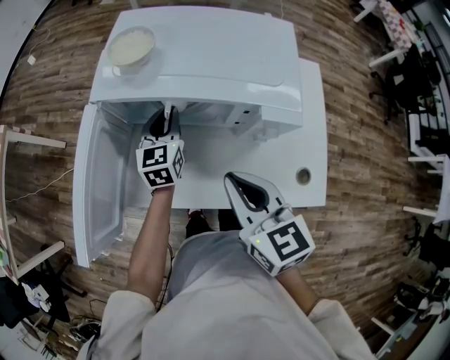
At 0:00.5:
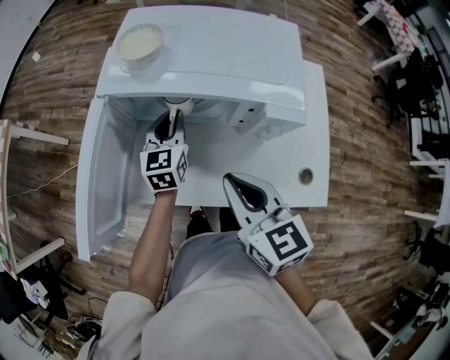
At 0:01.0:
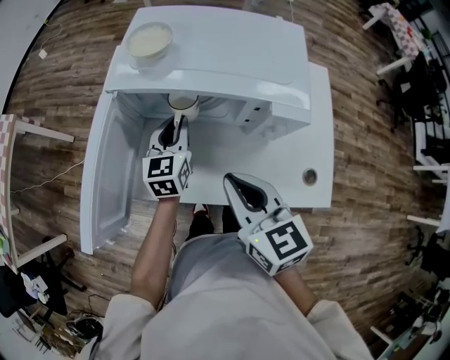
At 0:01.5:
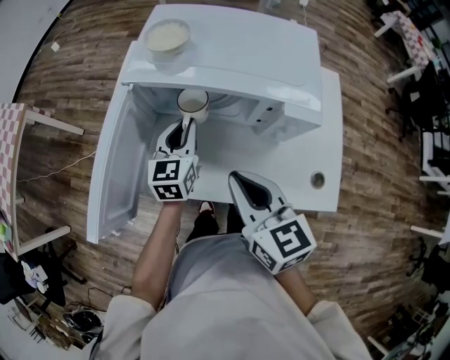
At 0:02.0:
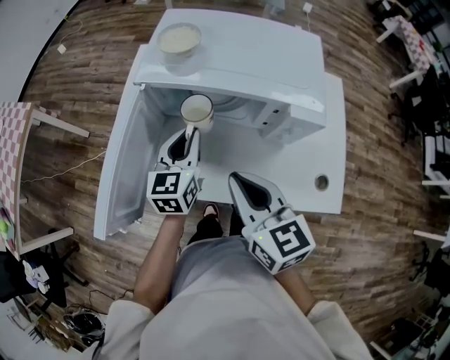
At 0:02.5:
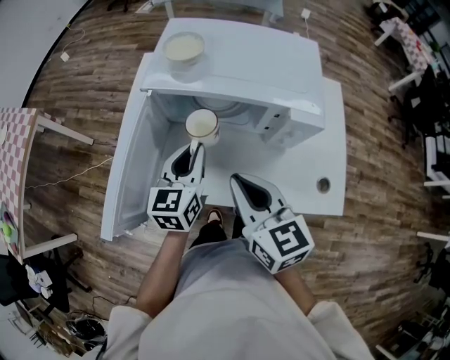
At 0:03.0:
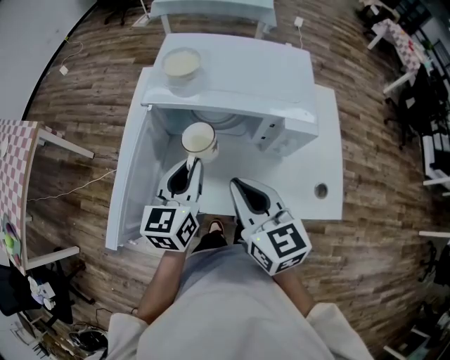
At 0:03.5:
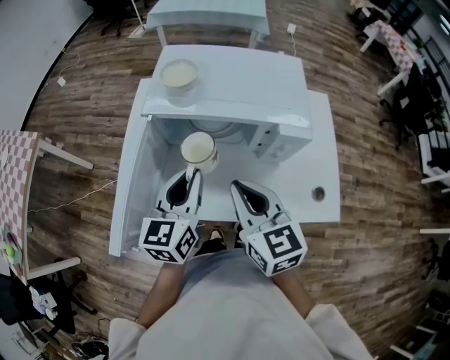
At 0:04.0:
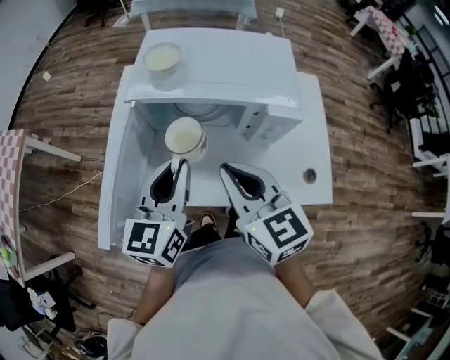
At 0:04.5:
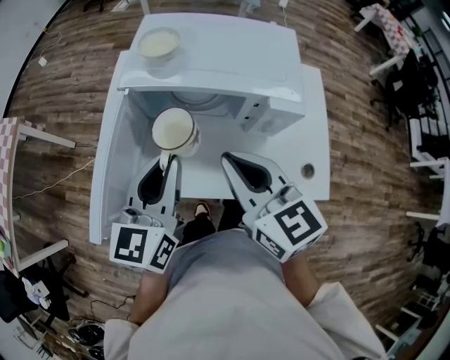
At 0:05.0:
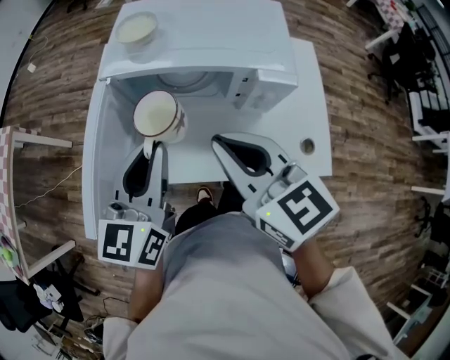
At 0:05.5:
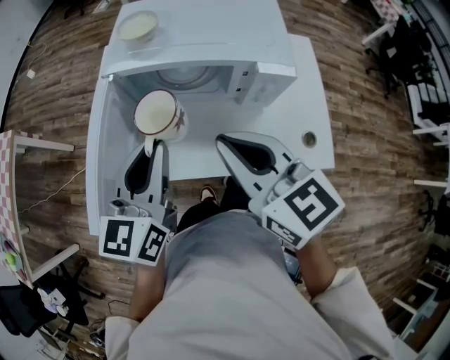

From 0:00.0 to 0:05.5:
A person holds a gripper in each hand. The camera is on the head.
From 0:00.0 to 0:02.0: The left gripper travels backward and upward by roughly 10 cm, while the right gripper is displaced to the left by approximately 5 cm.
From 0:02.0 to 0:03.5: The left gripper moves upward and backward, some 10 cm.
From 0:03.5 to 0:05.5: The left gripper moves some 5 cm, while the right gripper is displaced upward by roughly 5 cm.

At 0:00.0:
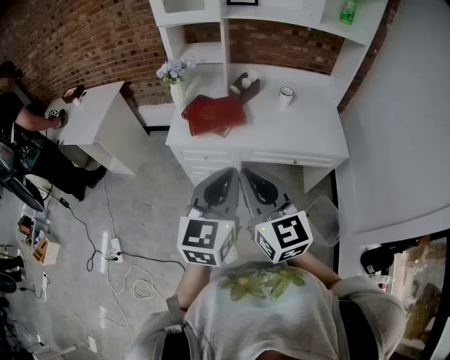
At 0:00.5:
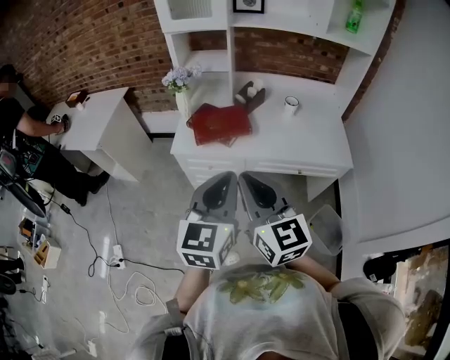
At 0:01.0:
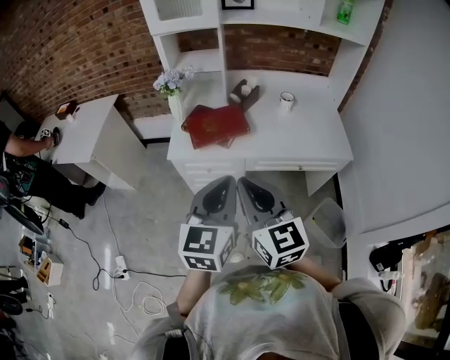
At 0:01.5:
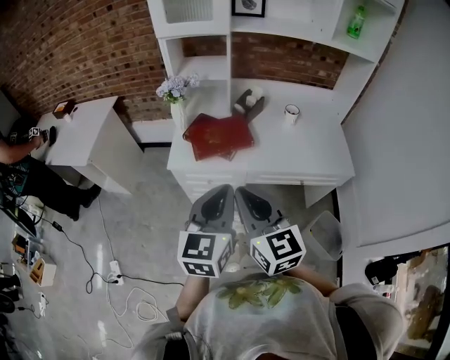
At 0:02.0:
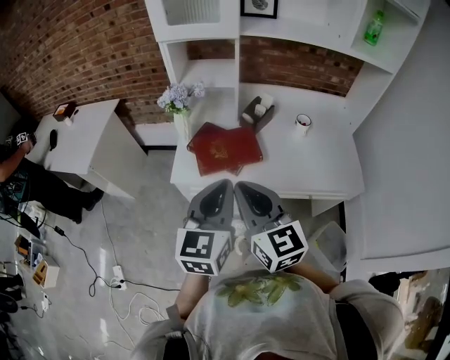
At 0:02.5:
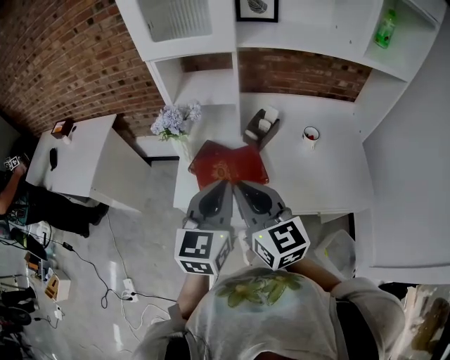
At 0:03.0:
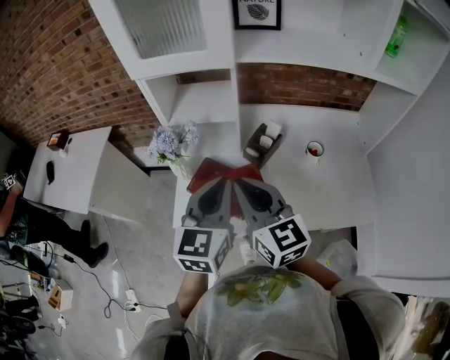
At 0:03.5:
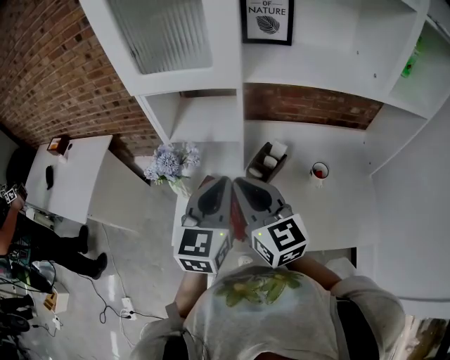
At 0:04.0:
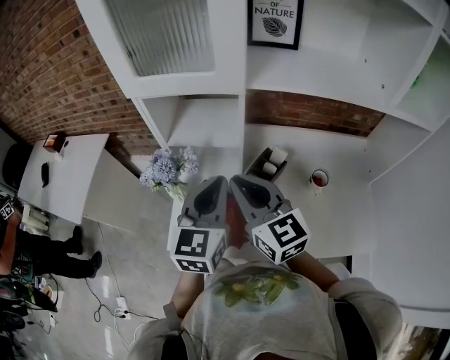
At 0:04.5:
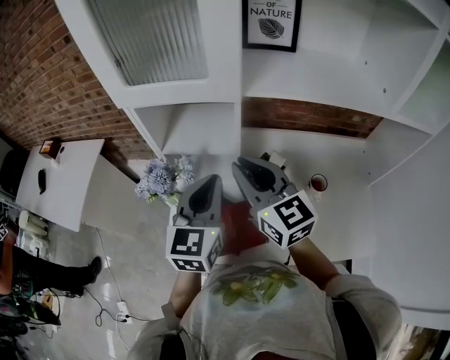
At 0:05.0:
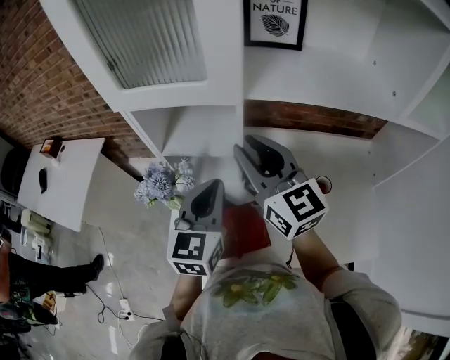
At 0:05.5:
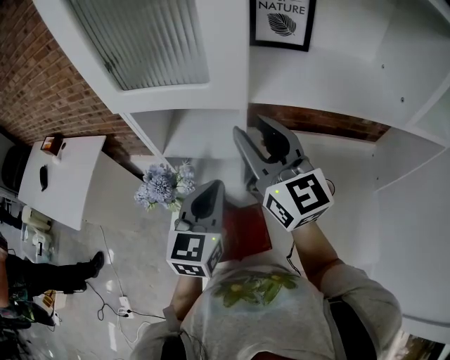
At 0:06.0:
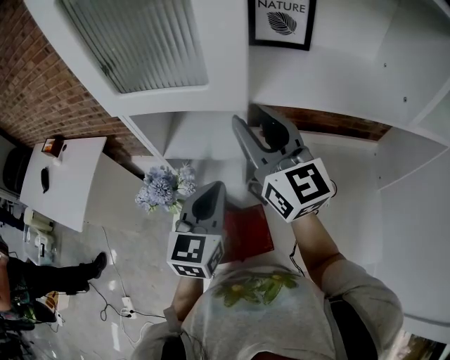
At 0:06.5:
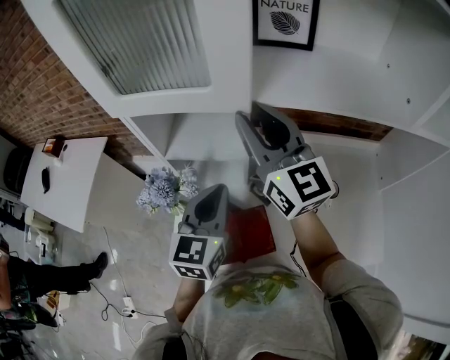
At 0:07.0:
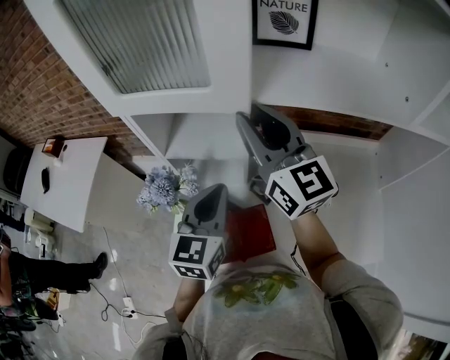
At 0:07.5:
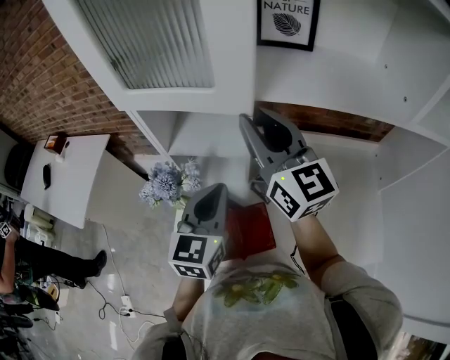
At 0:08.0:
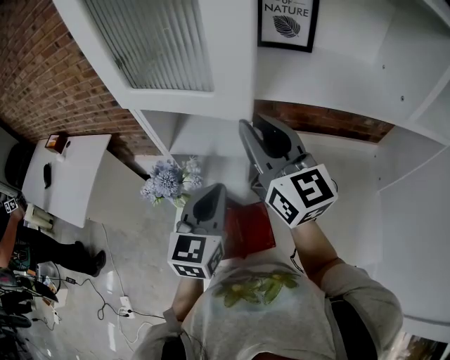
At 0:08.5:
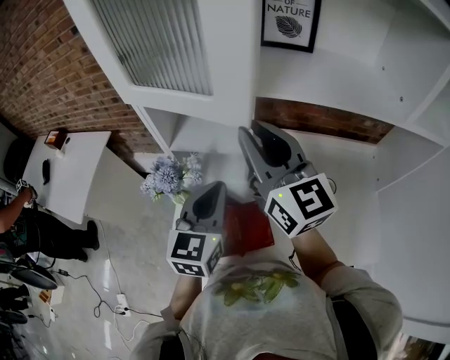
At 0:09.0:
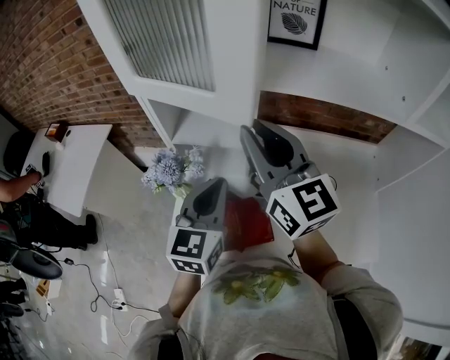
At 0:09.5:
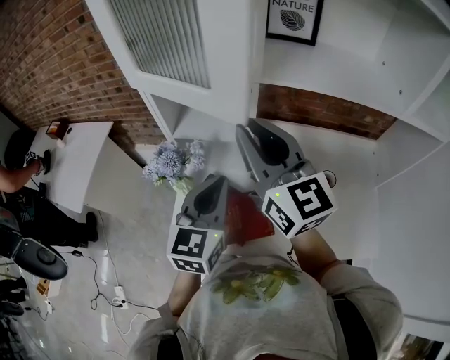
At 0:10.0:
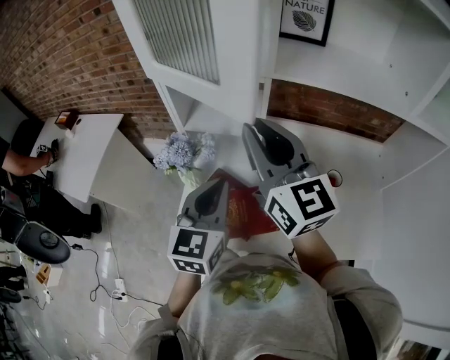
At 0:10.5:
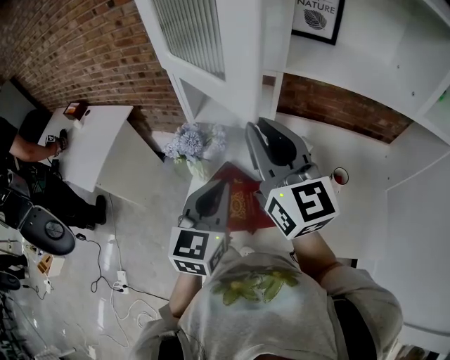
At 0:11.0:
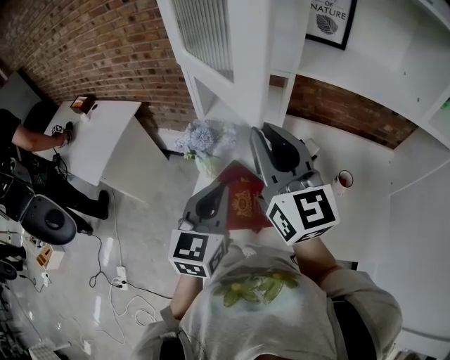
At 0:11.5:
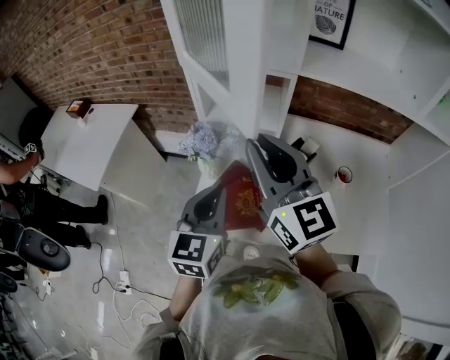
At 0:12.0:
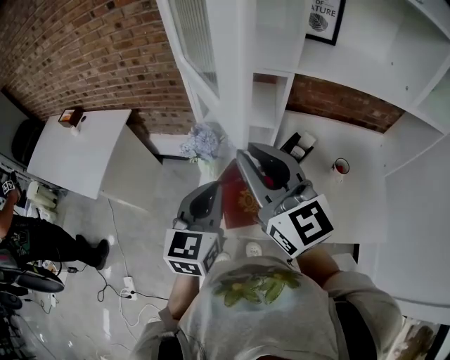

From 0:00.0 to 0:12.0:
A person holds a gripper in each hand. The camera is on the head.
From 0:00.0 to 0:02.0: Both grippers travel together forward, approximately 20 cm.
From 0:02.0 to 0:04.0: Both grippers move forward, approximately 30 cm.
From 0:04.0 to 0:06.0: The right gripper heads forward and upward, covering approximately 20 cm, and opens; the left gripper heads forward, covering about 5 cm.
From 0:06.0 to 0:08.0: The grippers move only a little.
From 0:08.0 to 0:10.0: Both grippers travel together backward, about 5 cm.
From 0:10.0 to 0:12.0: The left gripper shifts about 10 cm to the left. Meanwhile the right gripper shifts approximately 10 cm to the left and backward.

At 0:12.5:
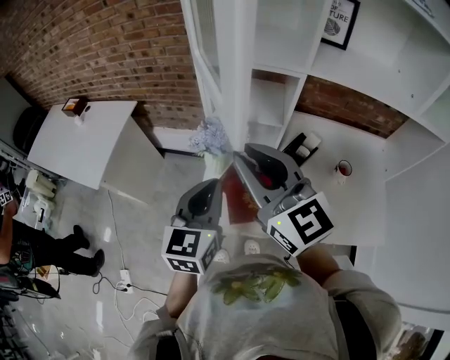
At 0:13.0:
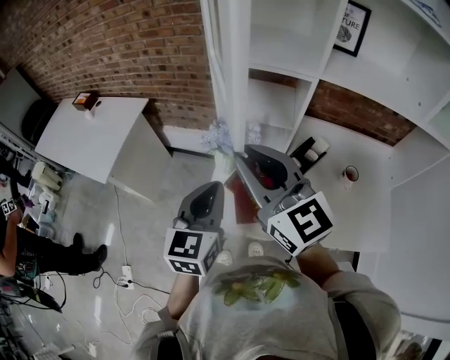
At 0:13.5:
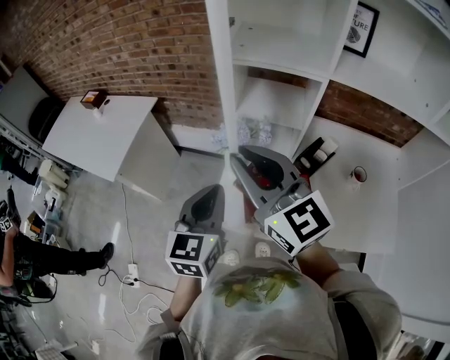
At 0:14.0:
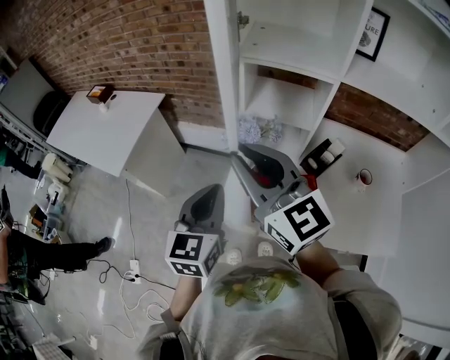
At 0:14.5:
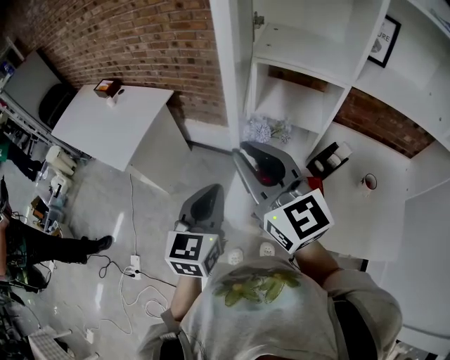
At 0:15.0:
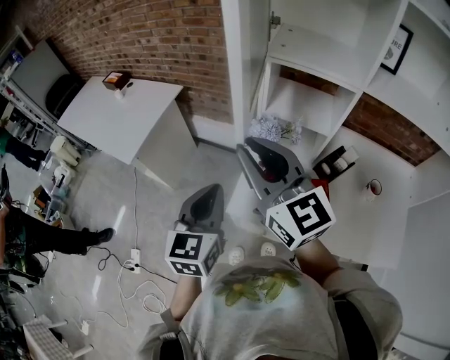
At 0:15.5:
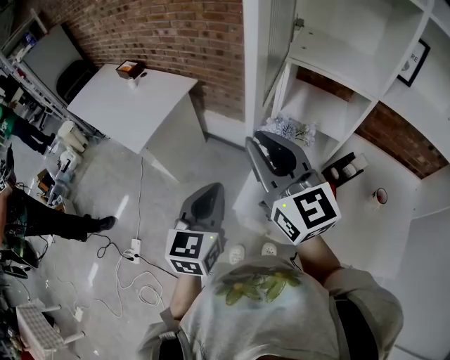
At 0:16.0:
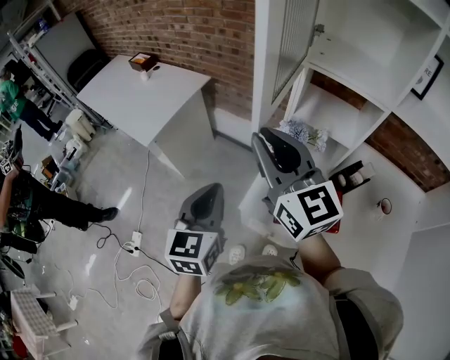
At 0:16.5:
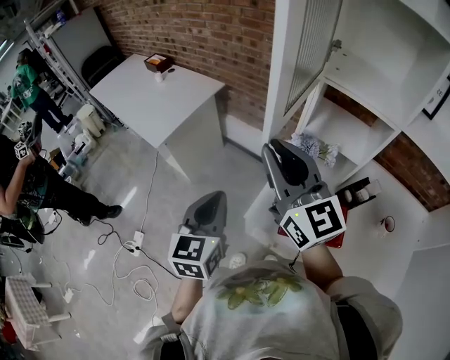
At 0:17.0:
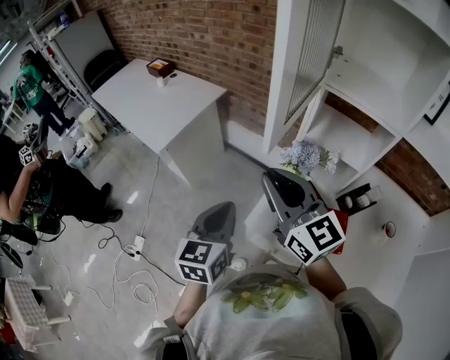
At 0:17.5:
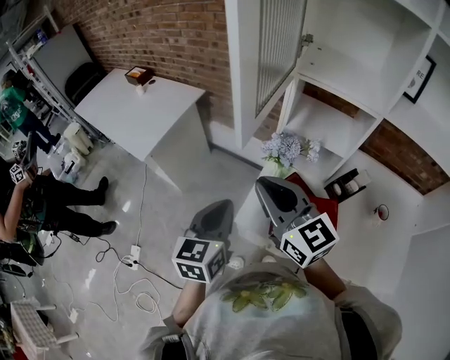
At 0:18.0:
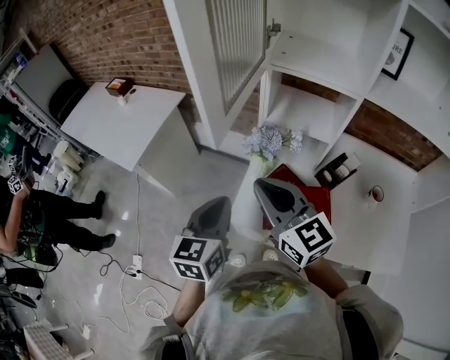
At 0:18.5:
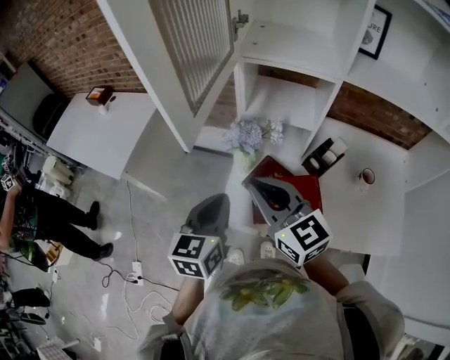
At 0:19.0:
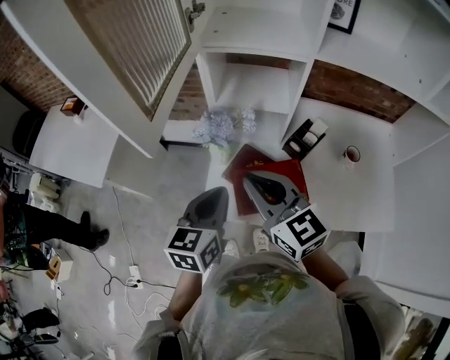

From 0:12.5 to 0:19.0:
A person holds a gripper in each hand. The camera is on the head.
From 0:12.5 to 0:14.5: Both grippers travel together to the left, about 10 cm.
From 0:14.5 to 0:17.0: The left gripper goes about 10 cm to the left; the right gripper moves to the left and downward, about 10 cm.
From 0:17.0 to 0:19.0: Both grippers travel together to the right, some 15 cm. The right gripper turns by approximately 20 degrees, while the left gripper changes its angle by some 20 degrees.

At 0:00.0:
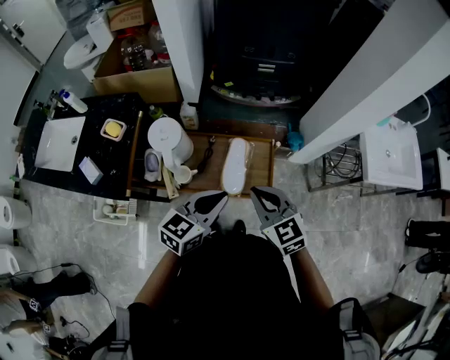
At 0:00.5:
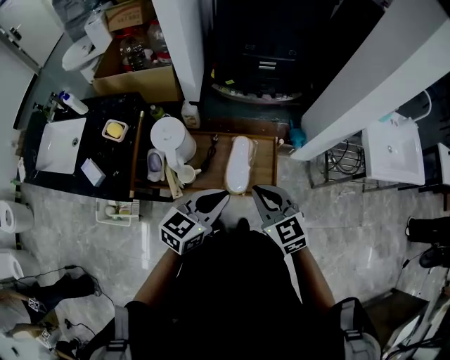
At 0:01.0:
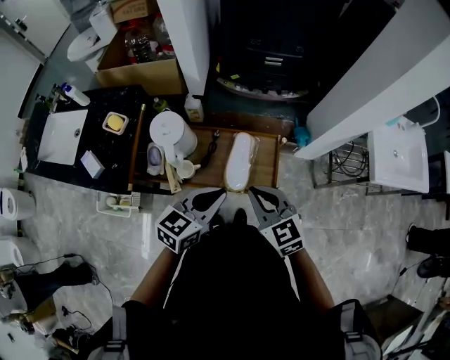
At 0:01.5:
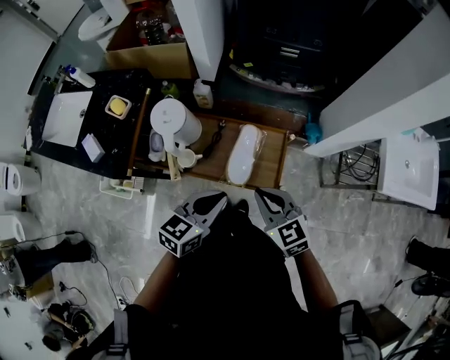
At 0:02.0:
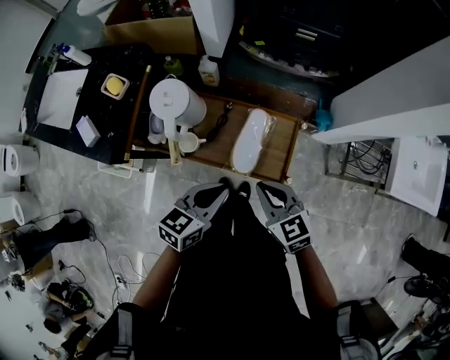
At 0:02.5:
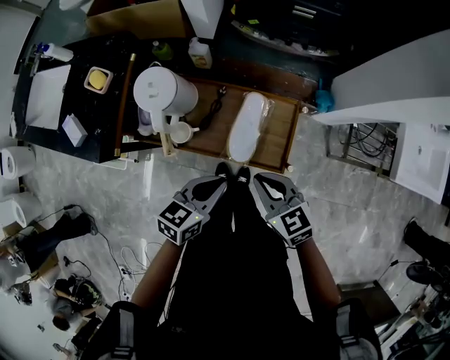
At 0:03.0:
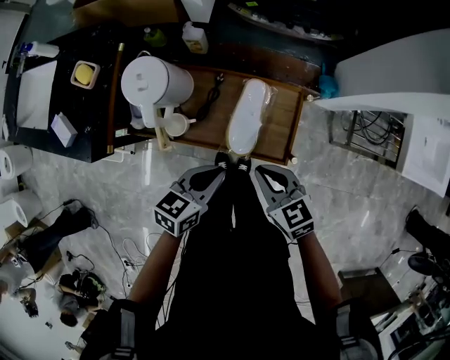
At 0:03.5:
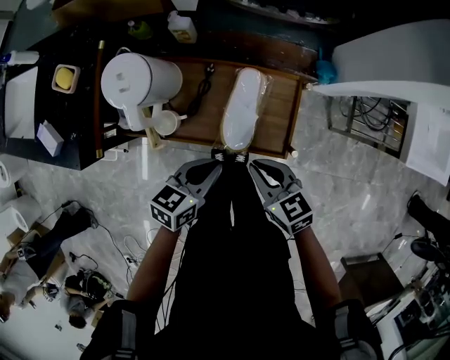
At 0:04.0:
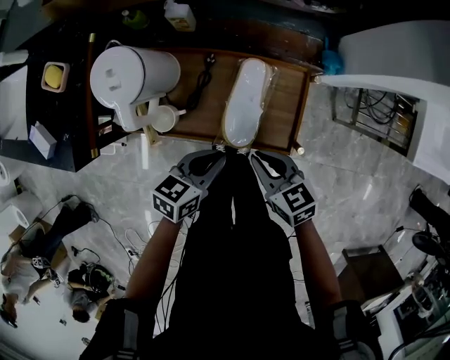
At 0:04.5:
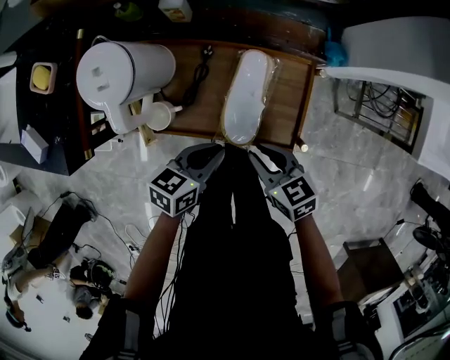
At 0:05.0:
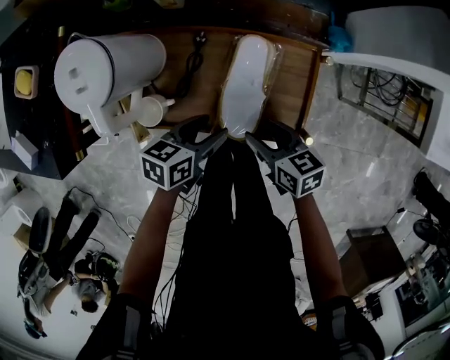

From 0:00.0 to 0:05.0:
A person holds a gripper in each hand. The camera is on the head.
From 0:00.0 to 0:02.5: The grippers both shift downward by about 10 cm. The left gripper swivels approximately 20 degrees.
From 0:02.5 to 0:05.0: Both grippers travel together downward, approximately 20 cm. The left gripper swivels roughly 20 degrees, and opens, while the right gripper changes its angle by roughly 30 degrees, and opens up.
